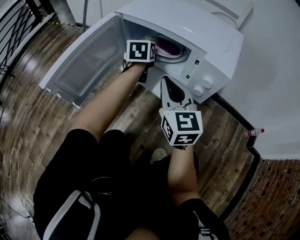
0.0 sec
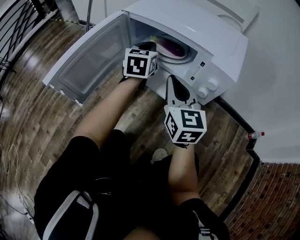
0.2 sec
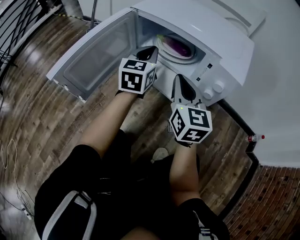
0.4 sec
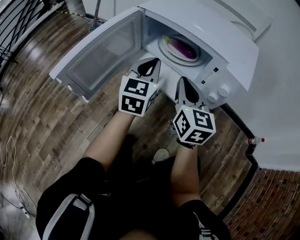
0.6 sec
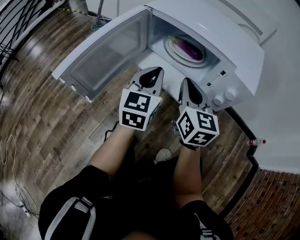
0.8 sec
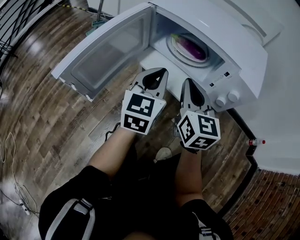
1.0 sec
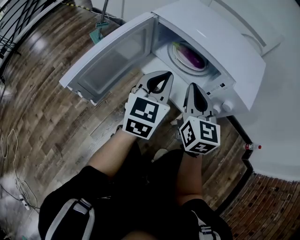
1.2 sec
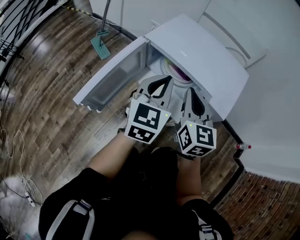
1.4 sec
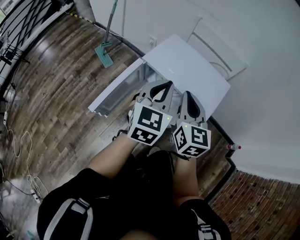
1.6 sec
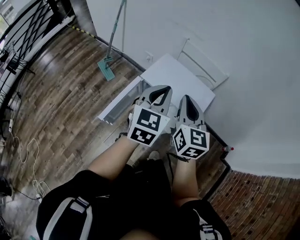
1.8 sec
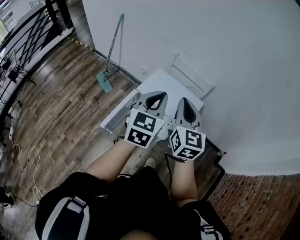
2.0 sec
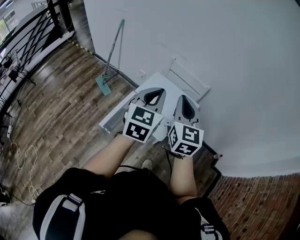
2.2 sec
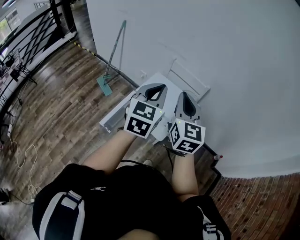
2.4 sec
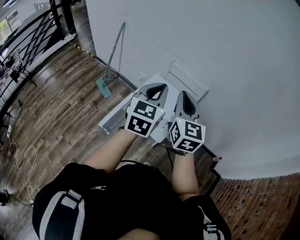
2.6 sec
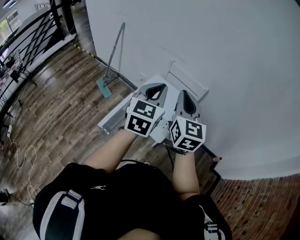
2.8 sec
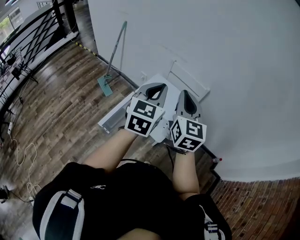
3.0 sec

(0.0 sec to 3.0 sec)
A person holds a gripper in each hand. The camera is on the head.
0.0 sec - 1.6 sec: The left gripper travels upward and backward by about 40 cm, and changes its angle by some 20 degrees; the right gripper heads upward, covering roughly 25 cm.
1.6 sec - 3.0 sec: Both grippers travel together upward, approximately 30 cm.

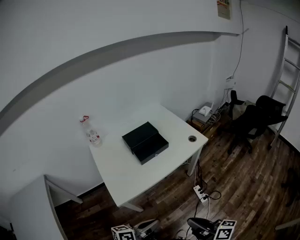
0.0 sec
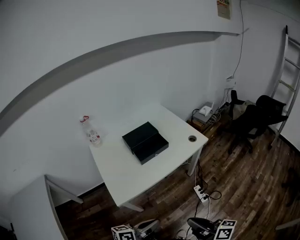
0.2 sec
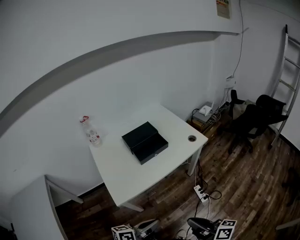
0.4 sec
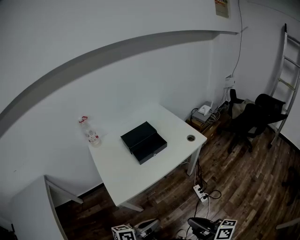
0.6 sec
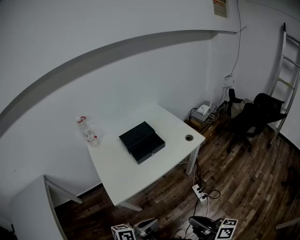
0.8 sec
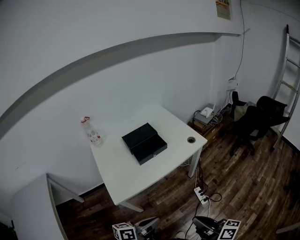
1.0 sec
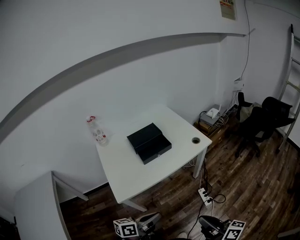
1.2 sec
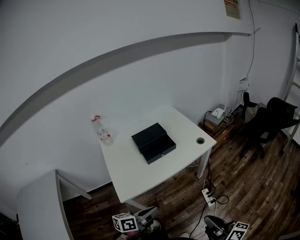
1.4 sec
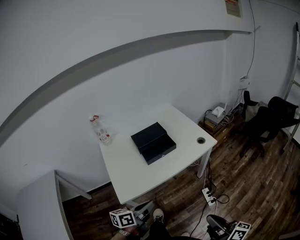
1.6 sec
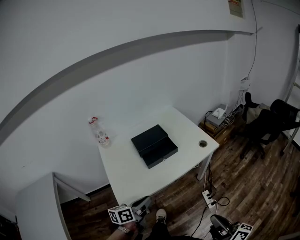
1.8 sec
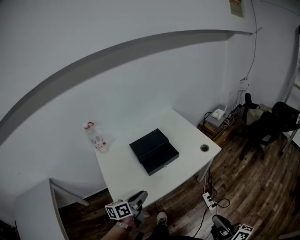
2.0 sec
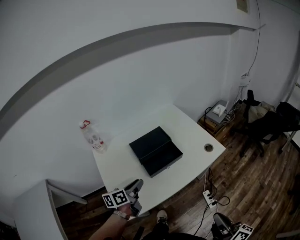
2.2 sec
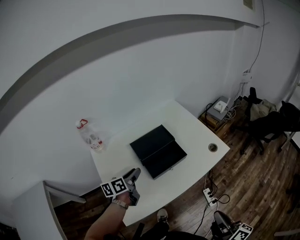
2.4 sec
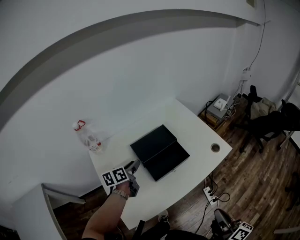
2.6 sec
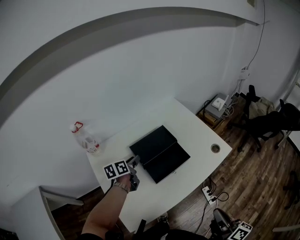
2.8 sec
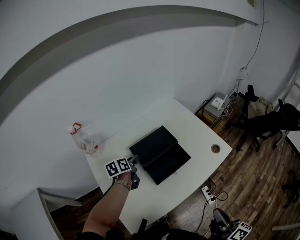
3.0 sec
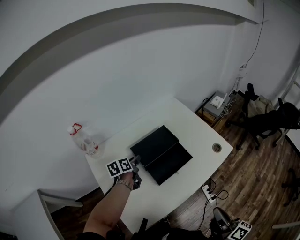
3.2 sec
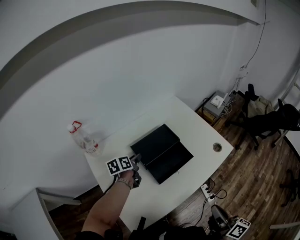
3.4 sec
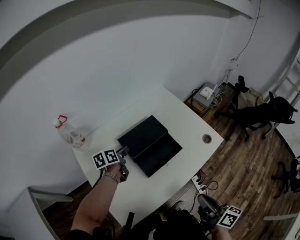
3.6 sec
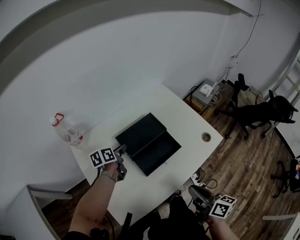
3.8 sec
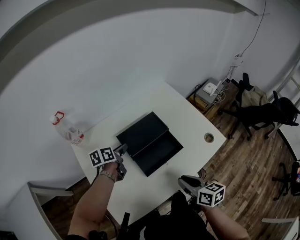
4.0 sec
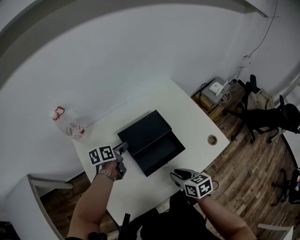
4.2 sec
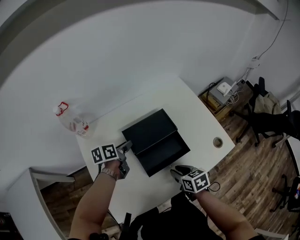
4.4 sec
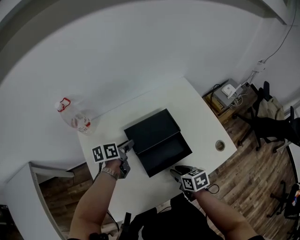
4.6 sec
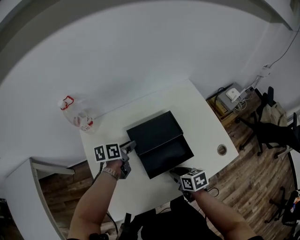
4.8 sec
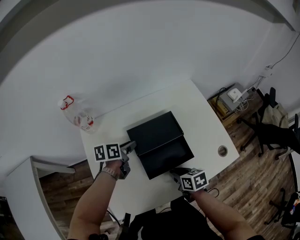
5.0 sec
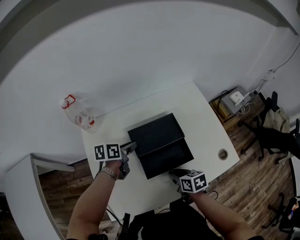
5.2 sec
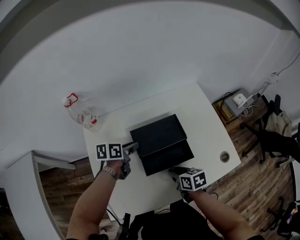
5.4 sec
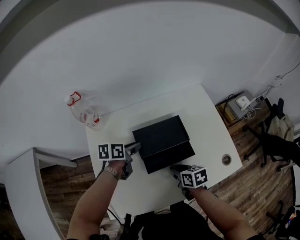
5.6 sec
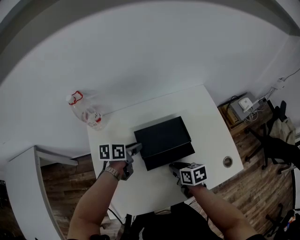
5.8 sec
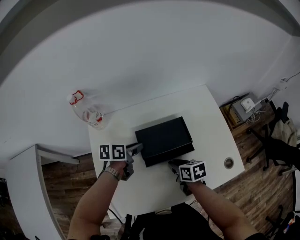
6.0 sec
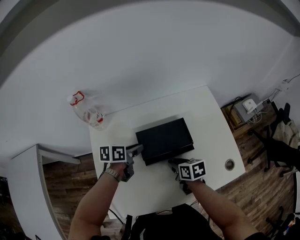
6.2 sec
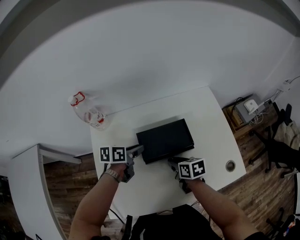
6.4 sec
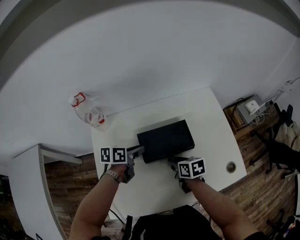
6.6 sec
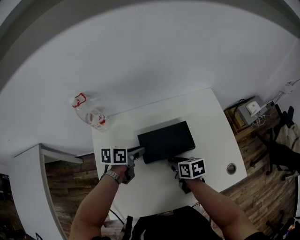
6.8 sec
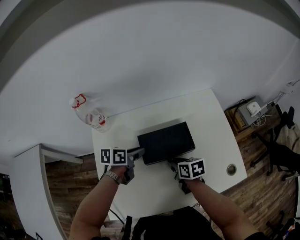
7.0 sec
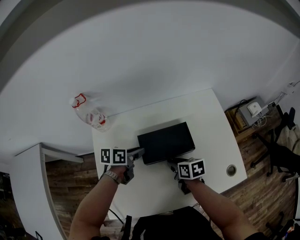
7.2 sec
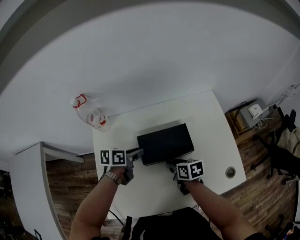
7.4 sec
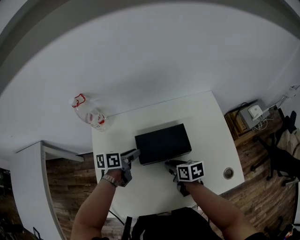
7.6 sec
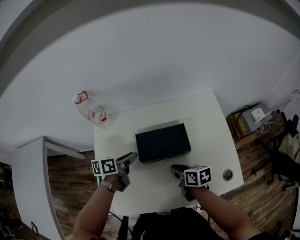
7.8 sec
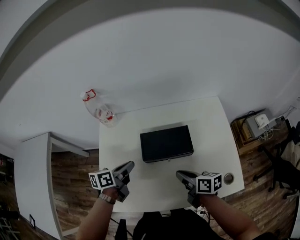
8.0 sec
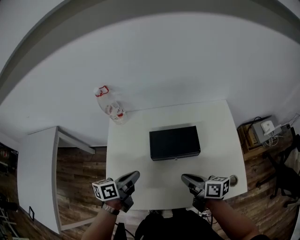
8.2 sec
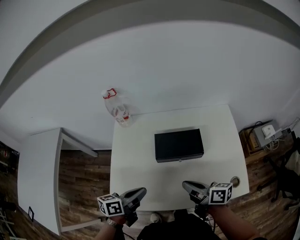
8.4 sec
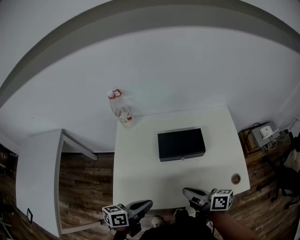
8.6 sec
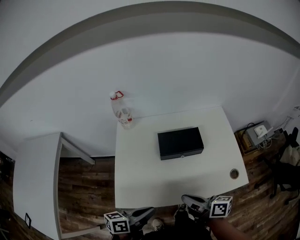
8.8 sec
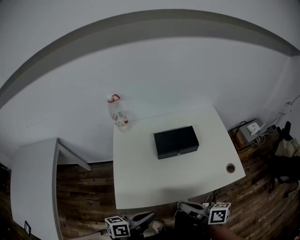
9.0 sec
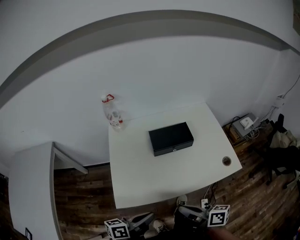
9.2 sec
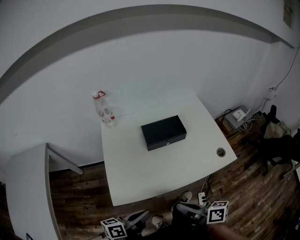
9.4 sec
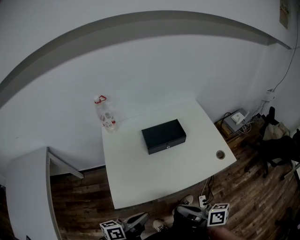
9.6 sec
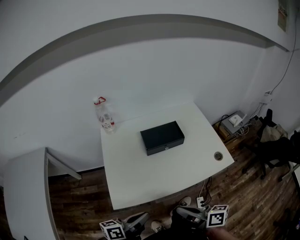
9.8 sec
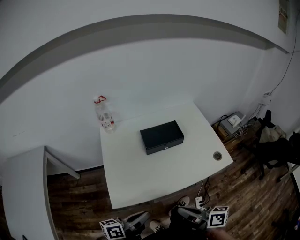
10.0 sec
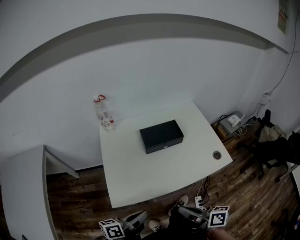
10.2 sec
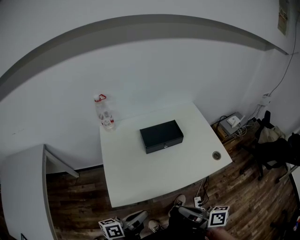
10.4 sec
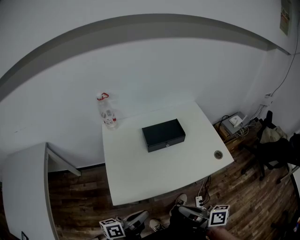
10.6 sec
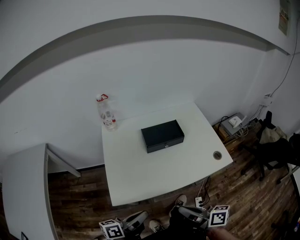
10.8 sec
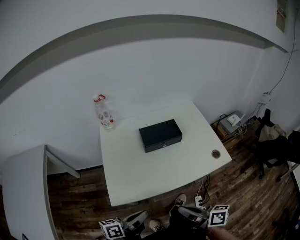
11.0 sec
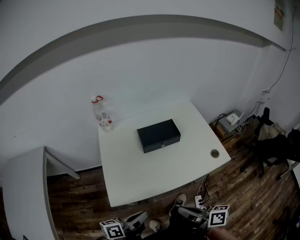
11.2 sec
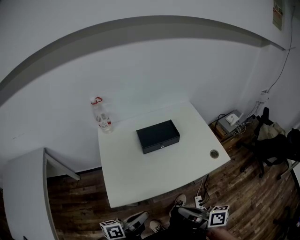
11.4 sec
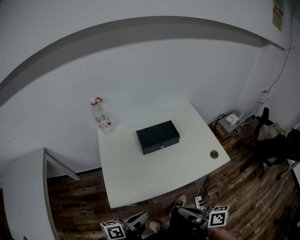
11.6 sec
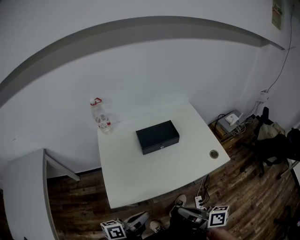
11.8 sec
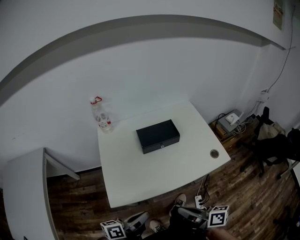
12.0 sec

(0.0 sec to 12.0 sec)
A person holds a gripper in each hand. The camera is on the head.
0.0 sec - 1.6 sec: The right gripper shifts roughly 10 cm to the right; the left gripper moves forward, about 10 cm.
1.6 sec - 3.0 sec: The right gripper goes roughly 20 cm forward and to the left, and rotates approximately 20 degrees. The left gripper shifts some 50 cm forward and to the left, rotates approximately 20 degrees, and opens its fingers.
3.0 sec - 4.4 sec: The right gripper heads forward, downward and to the left, covering about 30 cm, angles its fingers downward, by some 40 degrees, and opens up.
4.4 sec - 6.0 sec: The right gripper shifts some 10 cm forward.
6.0 sec - 7.6 sec: The grippers make only small movements.
7.6 sec - 9.0 sec: The right gripper goes approximately 30 cm backward and upward, points its fingers about 30 degrees further upward, and closes its fingers. Meanwhile the left gripper shifts approximately 35 cm backward, rotates roughly 20 degrees, and closes its fingers.
9.0 sec - 10.4 sec: The right gripper is displaced backward by some 10 cm.
10.4 sec - 12.0 sec: The grippers make only small movements.

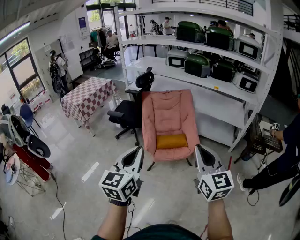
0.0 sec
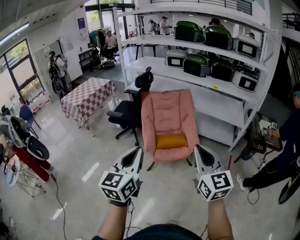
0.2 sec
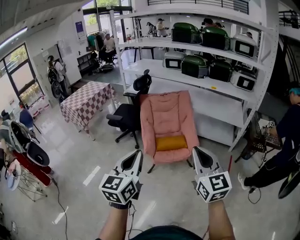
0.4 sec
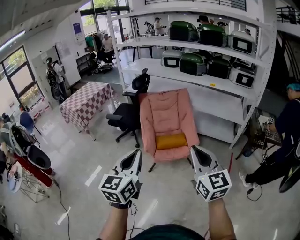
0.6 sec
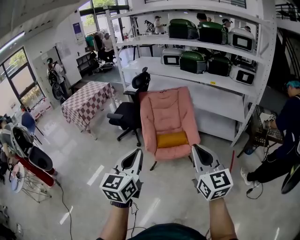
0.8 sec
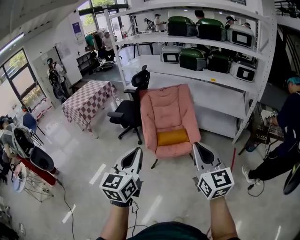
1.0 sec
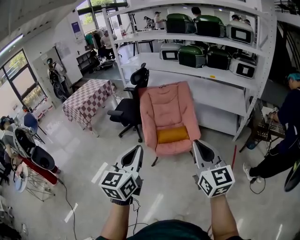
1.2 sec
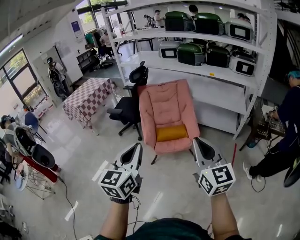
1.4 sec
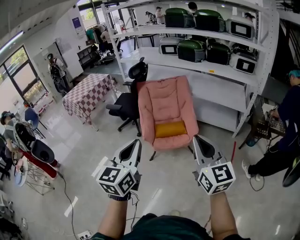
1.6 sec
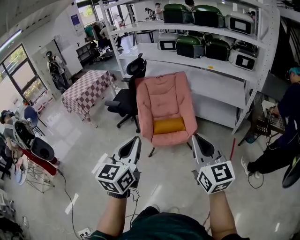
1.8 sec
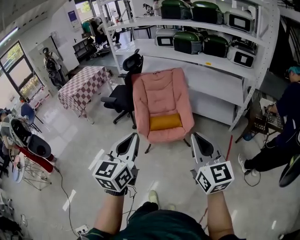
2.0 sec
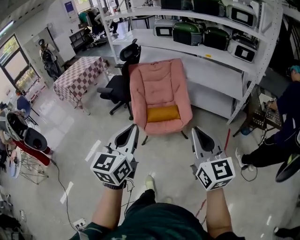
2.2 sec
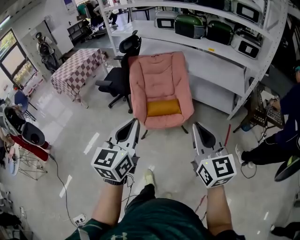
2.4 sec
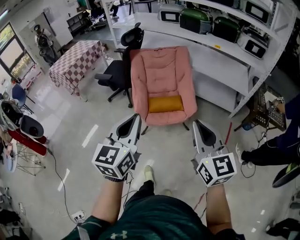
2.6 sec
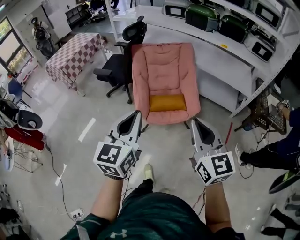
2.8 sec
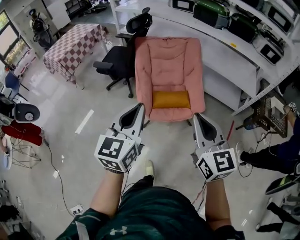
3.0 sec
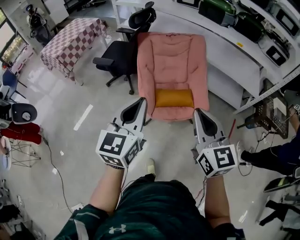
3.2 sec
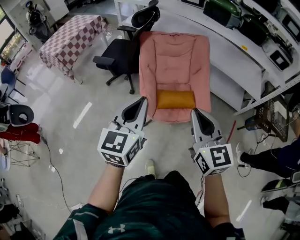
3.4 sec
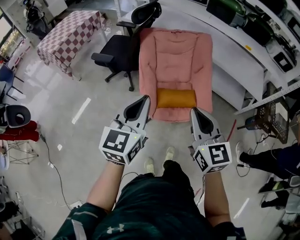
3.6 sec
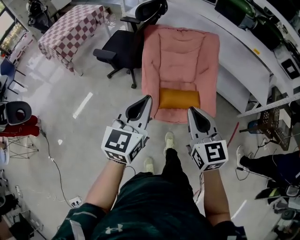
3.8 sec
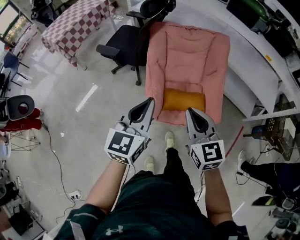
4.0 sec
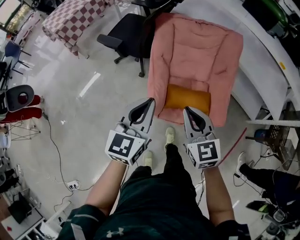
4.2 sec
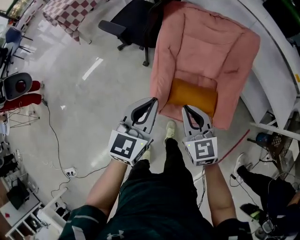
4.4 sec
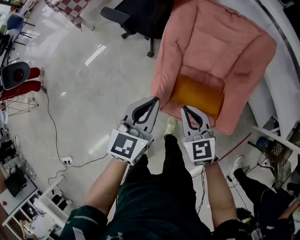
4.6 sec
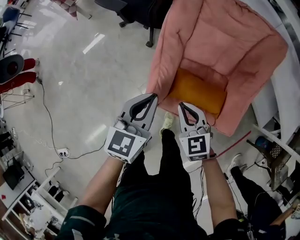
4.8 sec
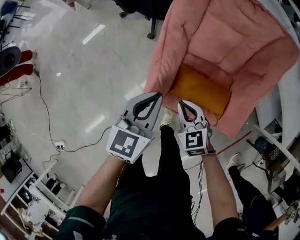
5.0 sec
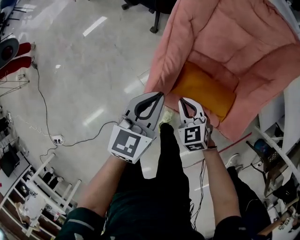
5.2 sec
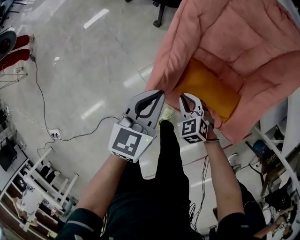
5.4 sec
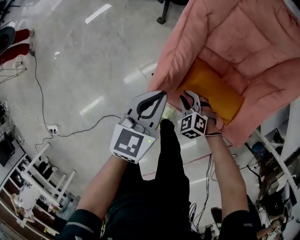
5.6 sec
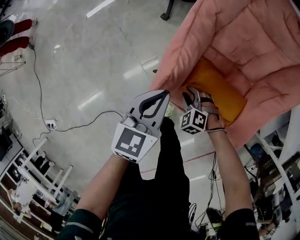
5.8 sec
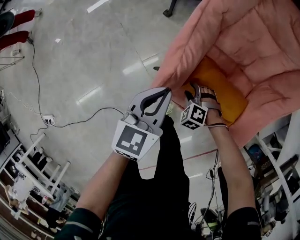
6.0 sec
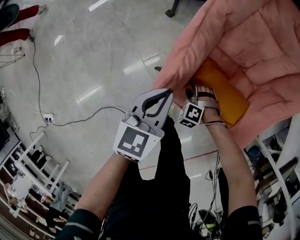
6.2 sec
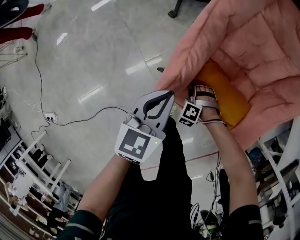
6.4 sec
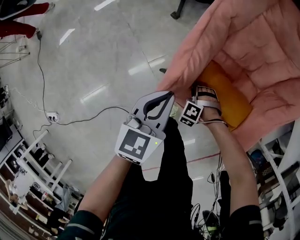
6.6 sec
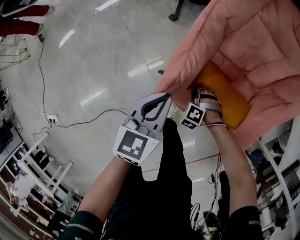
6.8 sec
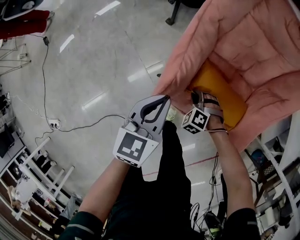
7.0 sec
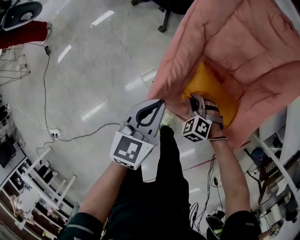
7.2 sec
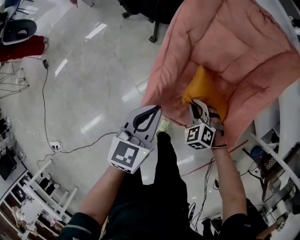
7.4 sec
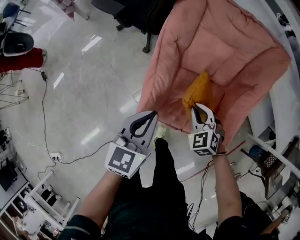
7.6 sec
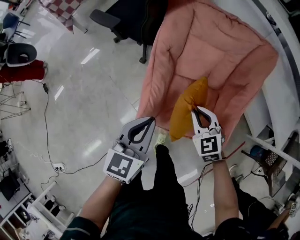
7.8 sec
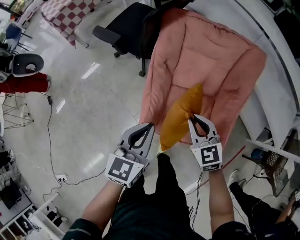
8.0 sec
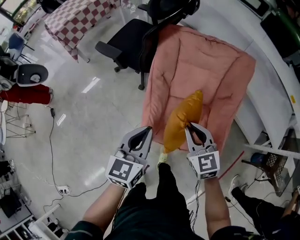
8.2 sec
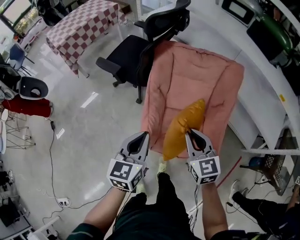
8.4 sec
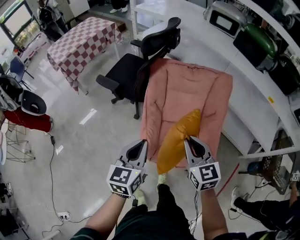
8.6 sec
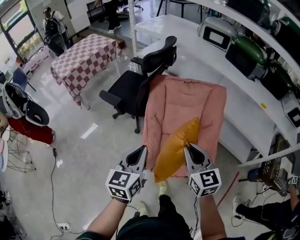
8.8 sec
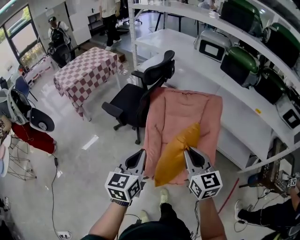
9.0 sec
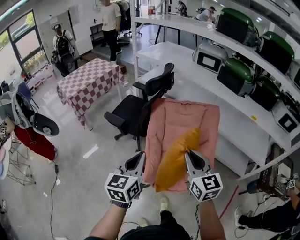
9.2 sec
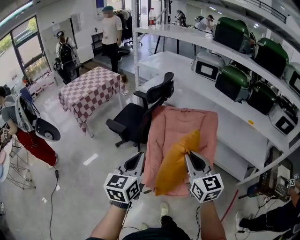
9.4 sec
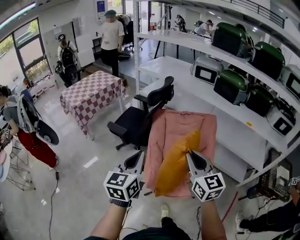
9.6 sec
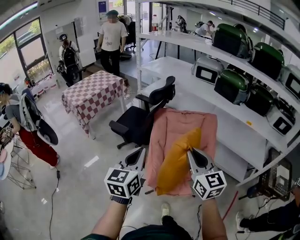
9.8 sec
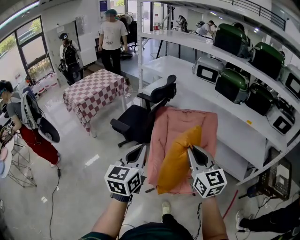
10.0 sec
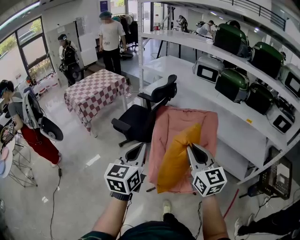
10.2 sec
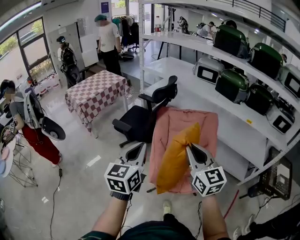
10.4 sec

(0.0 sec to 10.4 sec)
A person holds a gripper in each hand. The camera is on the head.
0.0 sec - 1.4 sec: Both grippers travel together to the right, roughly 5 cm.
1.4 sec - 3.0 sec: Both grippers travel together forward, approximately 25 cm.
3.0 sec - 4.4 sec: The two grippers go roughly 40 cm forward and downward. The right gripper swivels approximately 30 degrees.
4.4 sec - 6.0 sec: The left gripper travels downward by some 30 cm, and swivels approximately 20 degrees, while the right gripper goes roughly 50 cm downward, points its fingers about 50 degrees further downward, and opens up.
6.0 sec - 7.4 sec: The left gripper travels upward by about 10 cm. Meanwhile the right gripper moves upward, roughly 15 cm, changes its angle by approximately 20 degrees, and closes its fingers.
7.4 sec - 9.0 sec: The left gripper heads upward, covering roughly 35 cm; the right gripper heads upward, covering roughly 50 cm, and tips its fingers upward by about 50 degrees.
9.0 sec - 10.4 sec: The grippers both shift upward and backward by approximately 15 cm.
